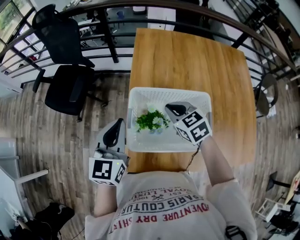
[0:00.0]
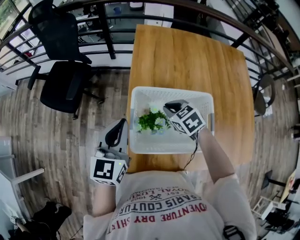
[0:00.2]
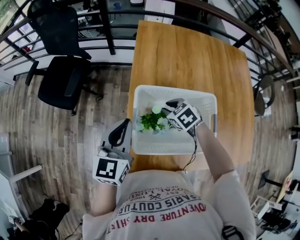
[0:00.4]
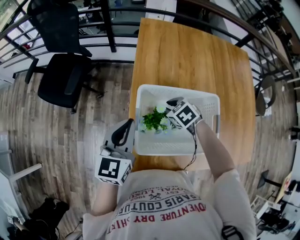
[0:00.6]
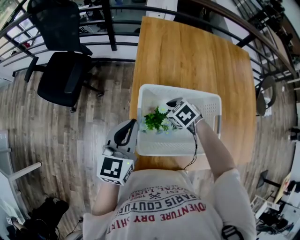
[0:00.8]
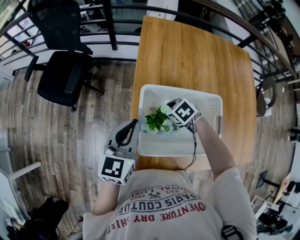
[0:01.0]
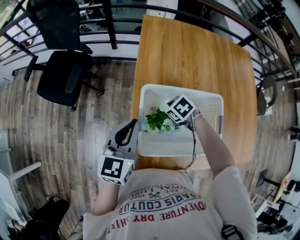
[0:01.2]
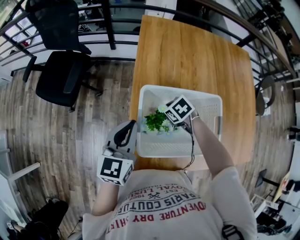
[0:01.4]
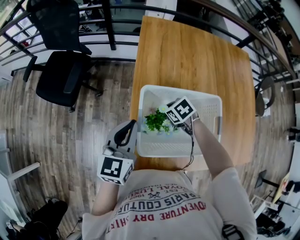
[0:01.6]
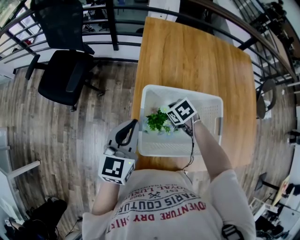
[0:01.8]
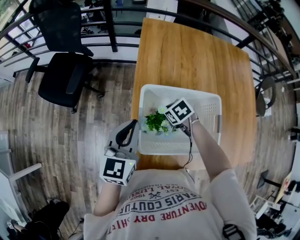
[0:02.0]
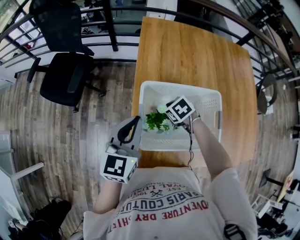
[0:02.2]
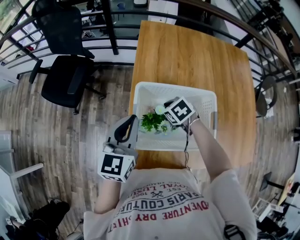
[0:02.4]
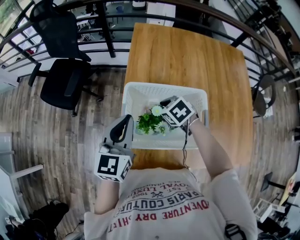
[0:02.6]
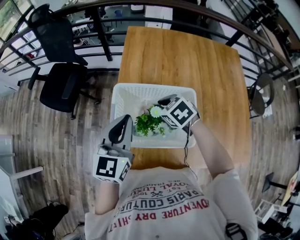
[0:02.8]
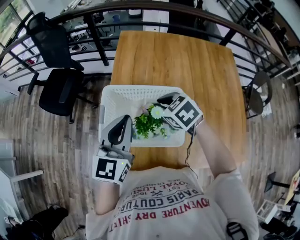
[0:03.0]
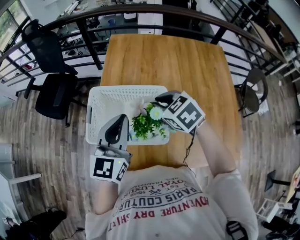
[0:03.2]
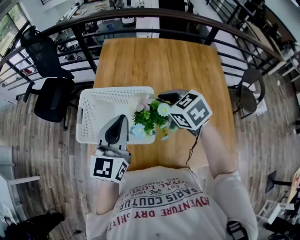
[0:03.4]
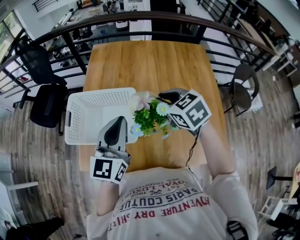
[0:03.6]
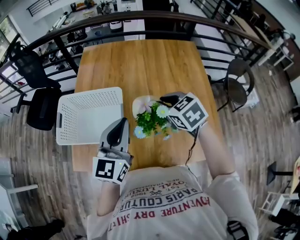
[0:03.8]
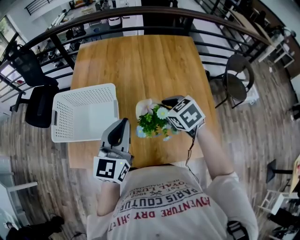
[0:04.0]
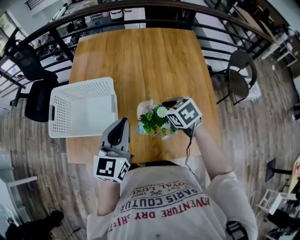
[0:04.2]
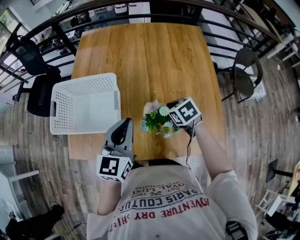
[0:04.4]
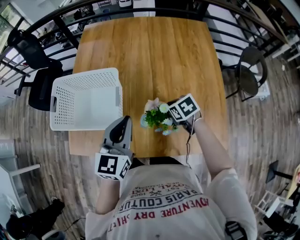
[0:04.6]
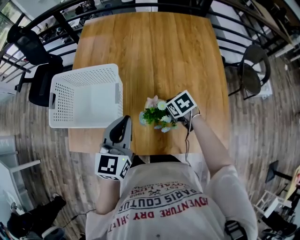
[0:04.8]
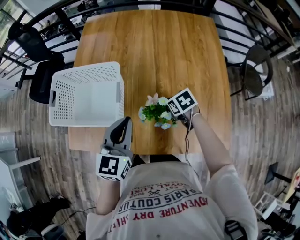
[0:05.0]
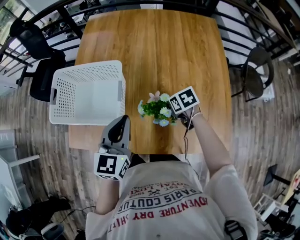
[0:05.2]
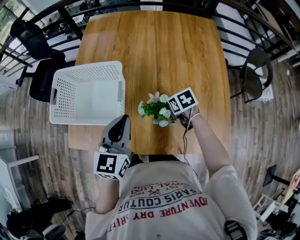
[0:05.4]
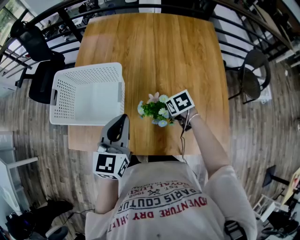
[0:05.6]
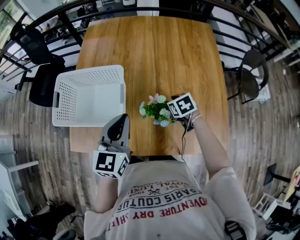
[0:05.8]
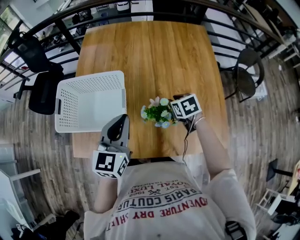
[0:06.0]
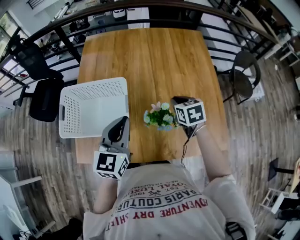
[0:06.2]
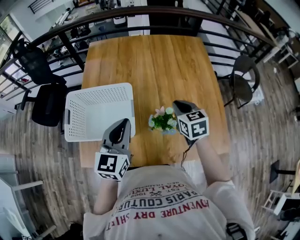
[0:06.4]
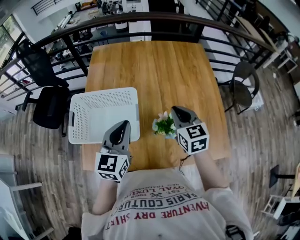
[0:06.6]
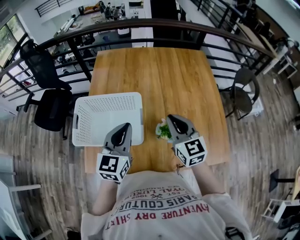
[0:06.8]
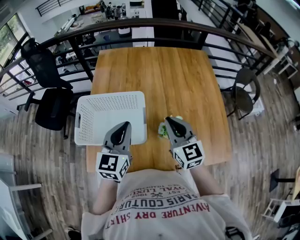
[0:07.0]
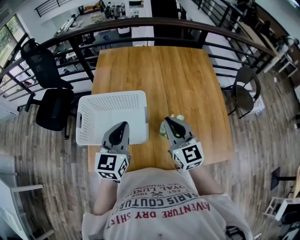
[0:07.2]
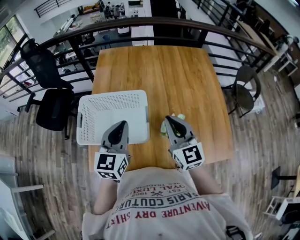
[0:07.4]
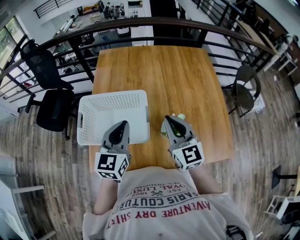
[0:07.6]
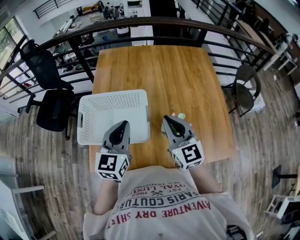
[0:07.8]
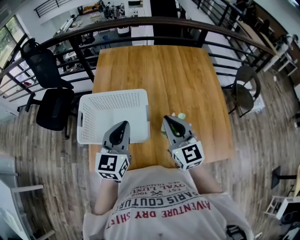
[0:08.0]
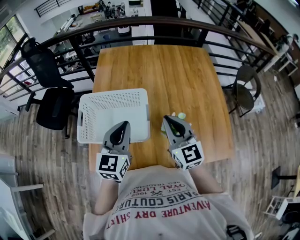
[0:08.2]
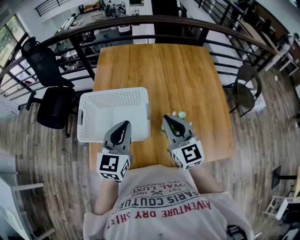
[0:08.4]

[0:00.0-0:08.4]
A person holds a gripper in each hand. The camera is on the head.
0:00.0 to 0:01.4: The right gripper shifts roughly 15 cm downward, and swivels approximately 30 degrees, while the left gripper heads downward, covering about 5 cm.
0:01.4 to 0:02.8: The left gripper heads upward, to the right and backward, covering about 10 cm. Meanwhile the right gripper heads upward, covering about 15 cm.
0:02.8 to 0:04.2: The two grippers go some 35 cm to the right and backward.
0:04.2 to 0:05.6: The right gripper heads downward, covering roughly 15 cm.
0:05.6 to 0:07.0: The left gripper travels to the left and upward by roughly 10 cm, while the right gripper shifts roughly 30 cm upward and to the left, and tips its fingers upward by some 60 degrees.
0:07.0 to 0:08.4: The grippers stay close to where they were, moving slightly.

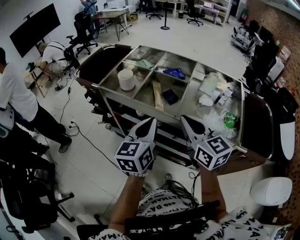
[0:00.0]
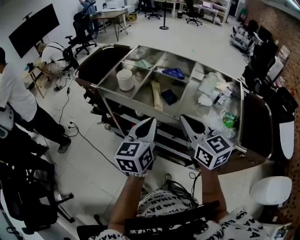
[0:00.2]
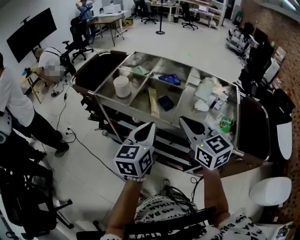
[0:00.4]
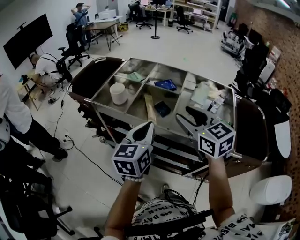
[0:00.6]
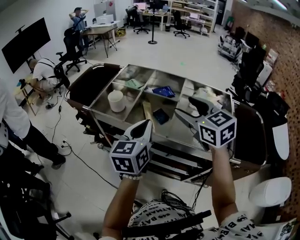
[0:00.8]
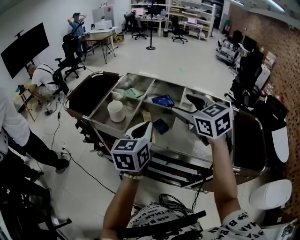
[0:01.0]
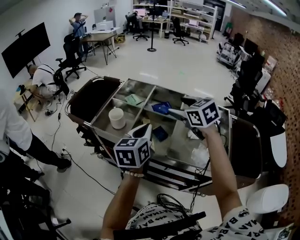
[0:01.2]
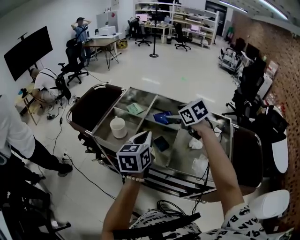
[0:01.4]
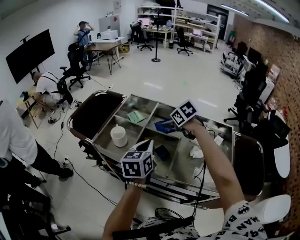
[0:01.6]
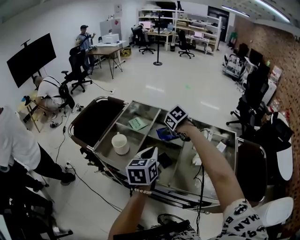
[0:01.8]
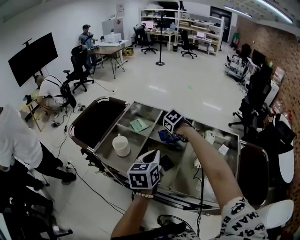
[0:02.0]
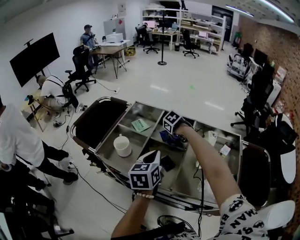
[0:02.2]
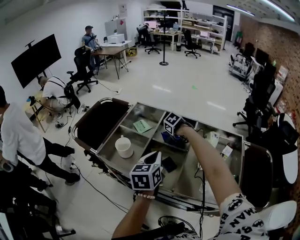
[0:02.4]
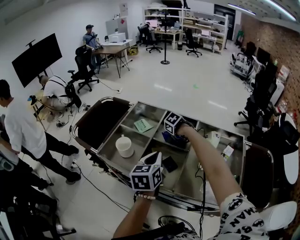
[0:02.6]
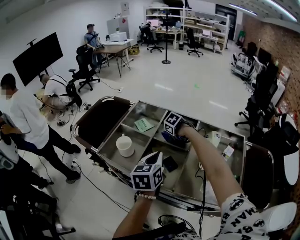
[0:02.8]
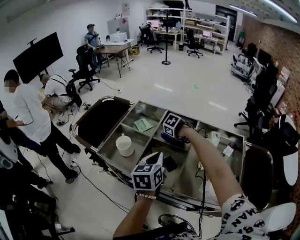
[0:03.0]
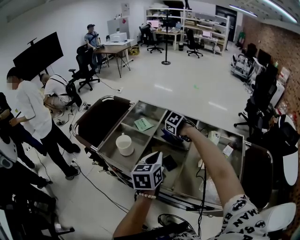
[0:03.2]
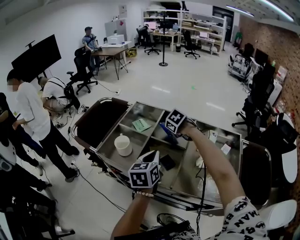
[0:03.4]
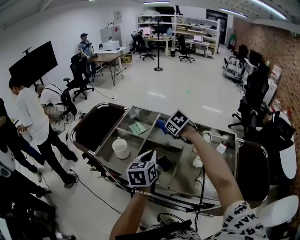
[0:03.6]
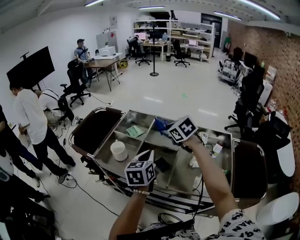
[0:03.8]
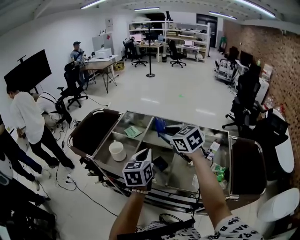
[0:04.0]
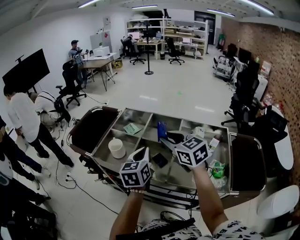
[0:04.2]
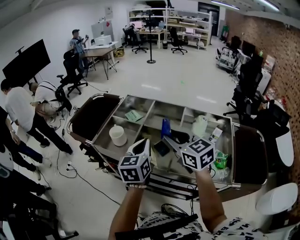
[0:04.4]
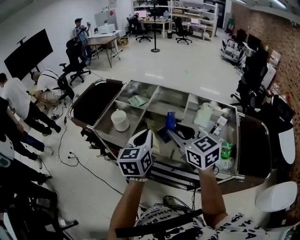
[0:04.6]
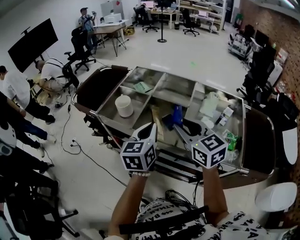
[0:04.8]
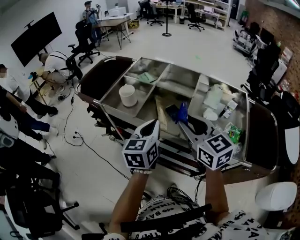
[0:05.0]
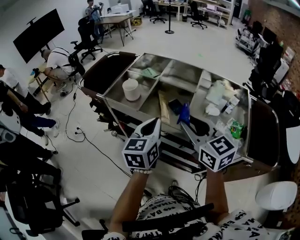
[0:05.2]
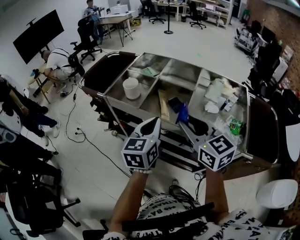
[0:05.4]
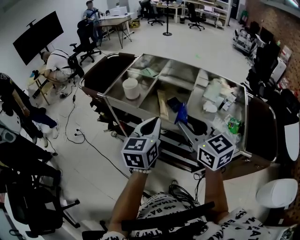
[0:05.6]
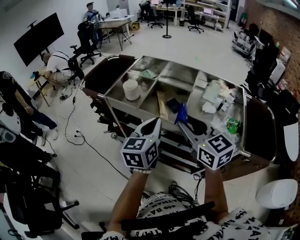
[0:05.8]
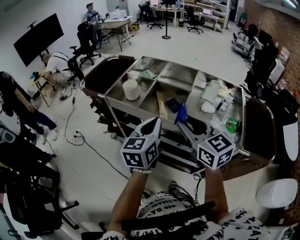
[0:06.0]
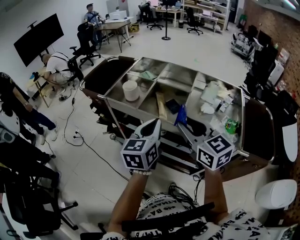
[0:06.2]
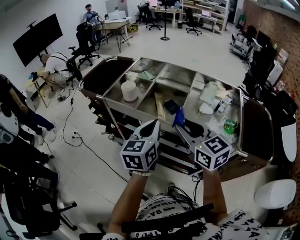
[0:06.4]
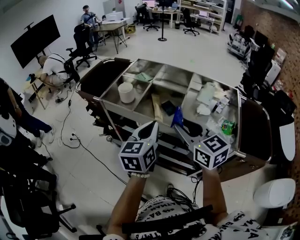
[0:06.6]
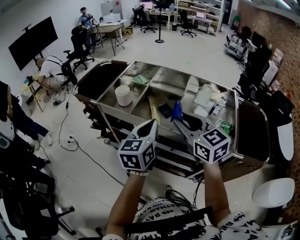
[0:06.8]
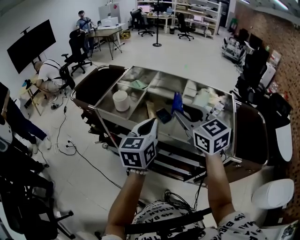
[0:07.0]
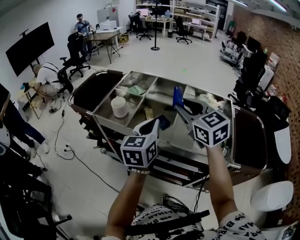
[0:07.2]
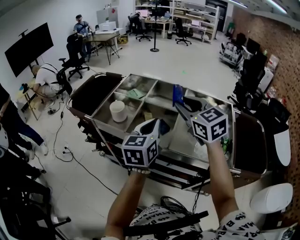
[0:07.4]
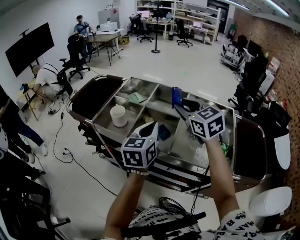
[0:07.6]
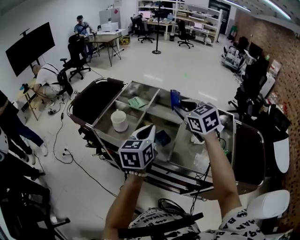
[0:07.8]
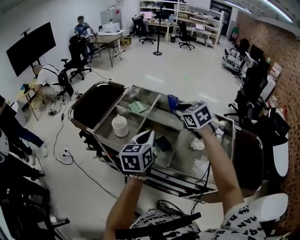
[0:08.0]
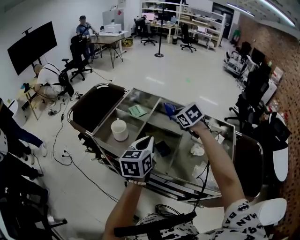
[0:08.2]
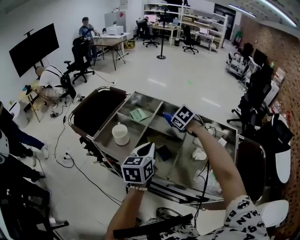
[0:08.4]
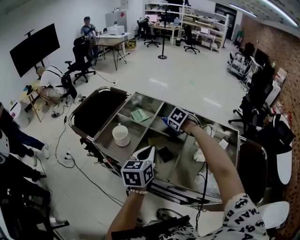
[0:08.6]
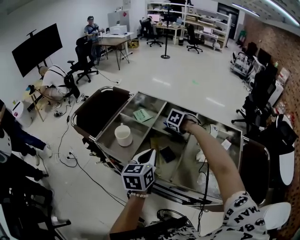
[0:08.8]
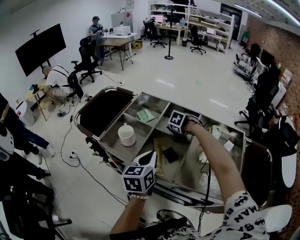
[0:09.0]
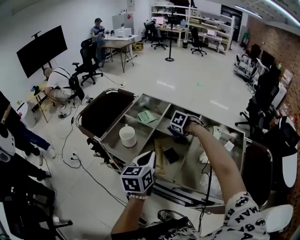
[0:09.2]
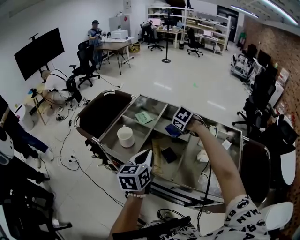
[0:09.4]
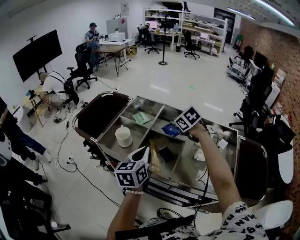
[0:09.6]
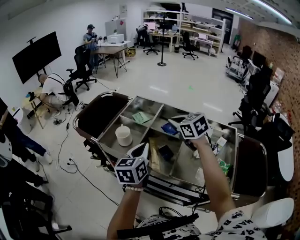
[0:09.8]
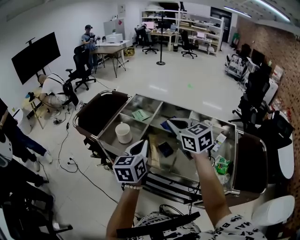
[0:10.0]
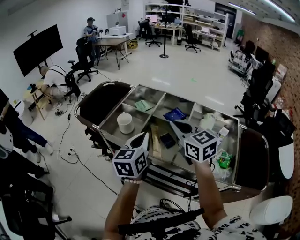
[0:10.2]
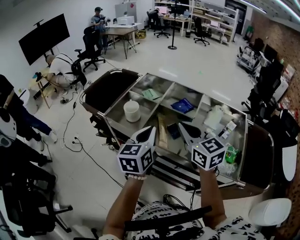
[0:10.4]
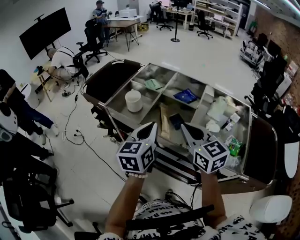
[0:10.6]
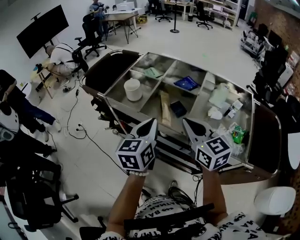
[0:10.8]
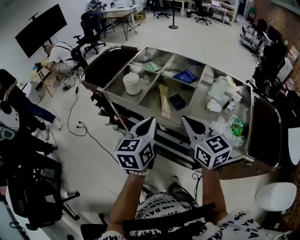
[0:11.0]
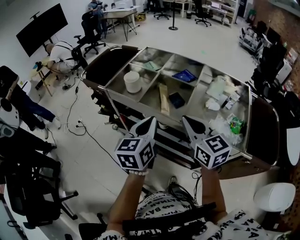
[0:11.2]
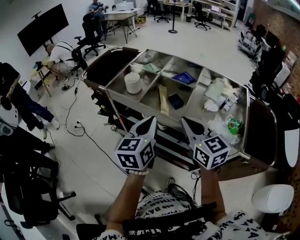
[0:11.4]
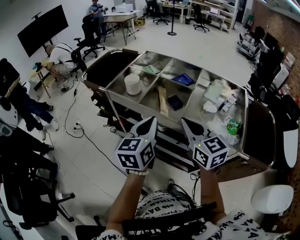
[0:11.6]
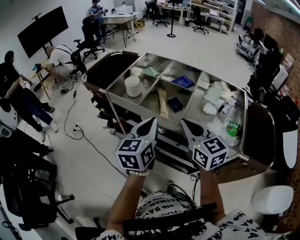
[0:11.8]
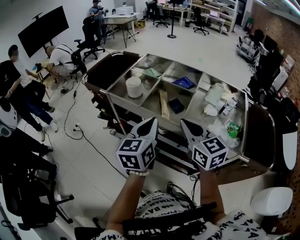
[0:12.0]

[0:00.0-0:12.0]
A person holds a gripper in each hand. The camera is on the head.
0:00.0 to 0:01.6: The left gripper shifts about 15 cm forward, while the right gripper heads forward, covering approximately 30 cm, tips its fingers downward by some 40 degrees, and opens up.
0:01.6 to 0:03.0: The right gripper shifts some 15 cm downward, and tips its fingers downward by approximately 30 degrees.
0:03.0 to 0:04.4: The right gripper moves upward, roughly 25 cm, and tips its fingers upward by about 70 degrees, while the left gripper ends up about 5 cm from where it was.
0:04.4 to 0:06.0: Both grippers travel together backward, about 15 cm.
0:06.0 to 0:07.6: The left gripper shifts about 10 cm forward. The right gripper is displaced forward by approximately 20 cm.
0:07.6 to 0:09.0: The left gripper is displaced downward by some 5 cm, while the right gripper travels downward by roughly 25 cm, and points its fingers some 60 degrees further downward.
0:09.0 to 0:10.4: The right gripper ends up roughly 35 cm from where it was, angles its fingers upward, by roughly 70 degrees, and closes up; the left gripper ends up roughly 5 cm from where it was.
0:10.4 to 0:12.0: The grippers both shift backward by roughly 10 cm.

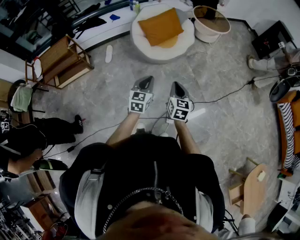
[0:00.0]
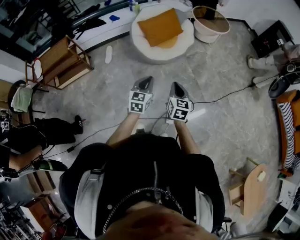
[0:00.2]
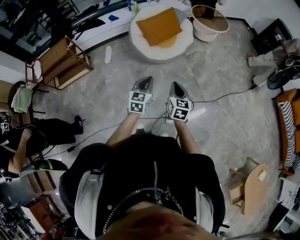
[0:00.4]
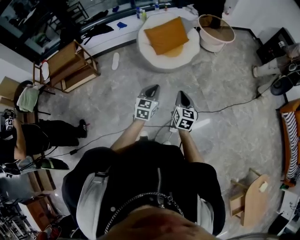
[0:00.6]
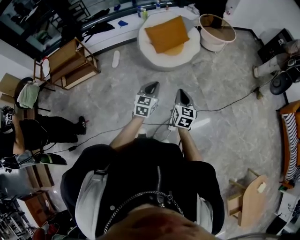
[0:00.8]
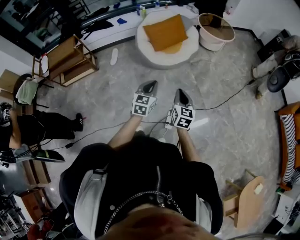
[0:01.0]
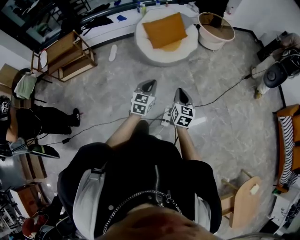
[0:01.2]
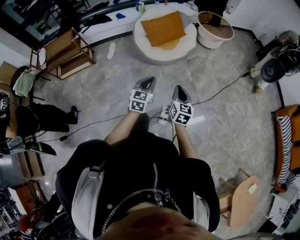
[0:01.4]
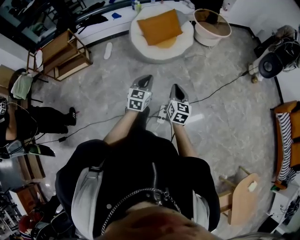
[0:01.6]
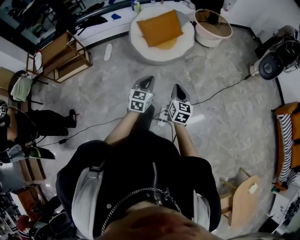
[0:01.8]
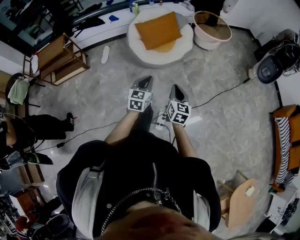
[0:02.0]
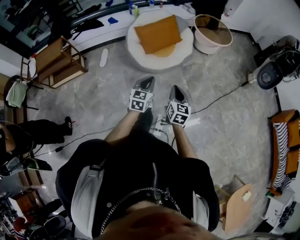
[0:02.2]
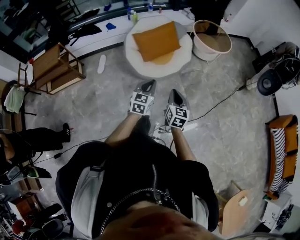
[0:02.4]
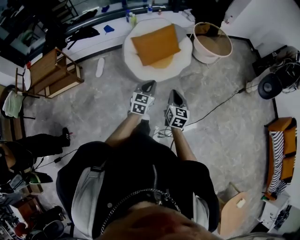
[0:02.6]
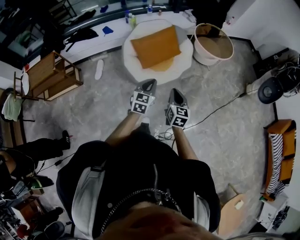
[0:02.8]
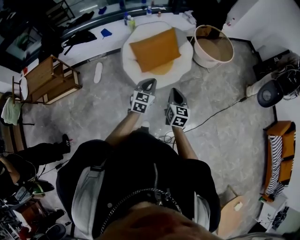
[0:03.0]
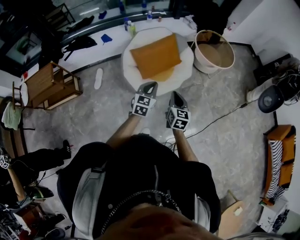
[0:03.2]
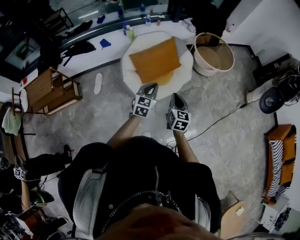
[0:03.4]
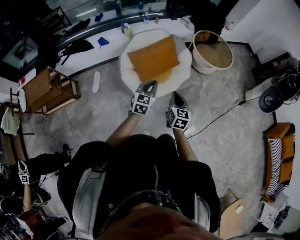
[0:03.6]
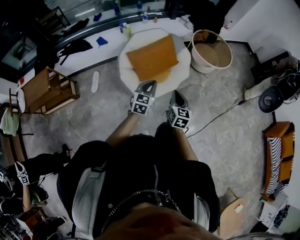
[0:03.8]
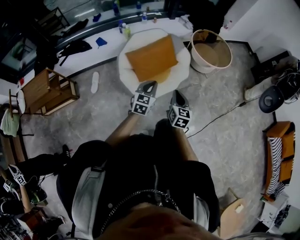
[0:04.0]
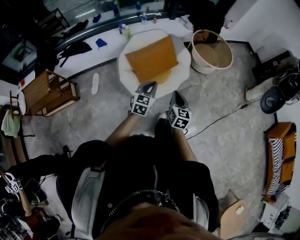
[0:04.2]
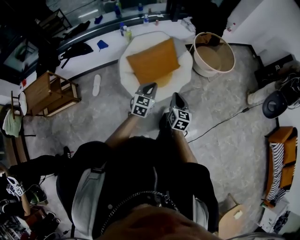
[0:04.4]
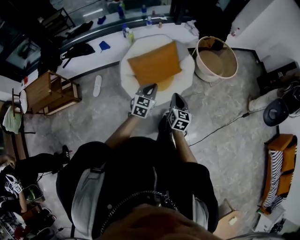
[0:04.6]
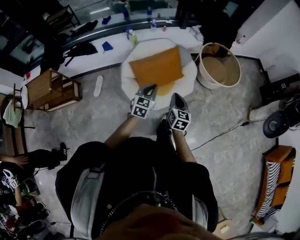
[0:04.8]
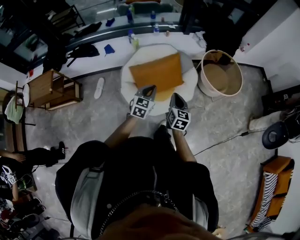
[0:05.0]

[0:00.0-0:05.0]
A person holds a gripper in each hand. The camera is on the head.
0:00.0 to 0:01.6: The two grippers go roughly 10 cm to the right.
0:01.6 to 0:03.4: Both grippers are carried forward, some 50 cm.
0:03.4 to 0:05.0: The two grippers go roughly 20 cm forward.
